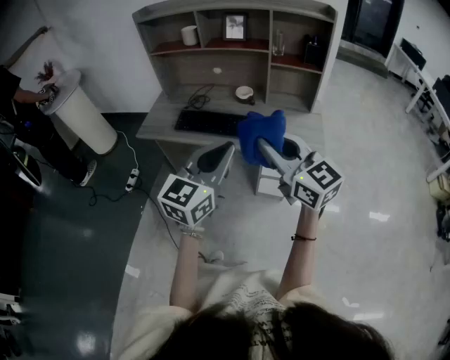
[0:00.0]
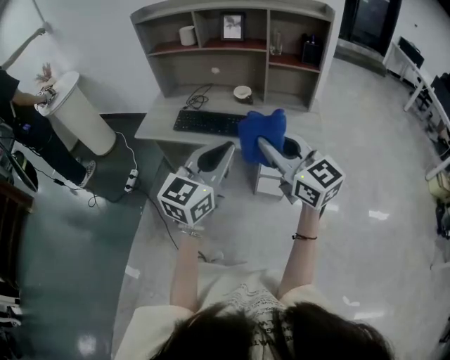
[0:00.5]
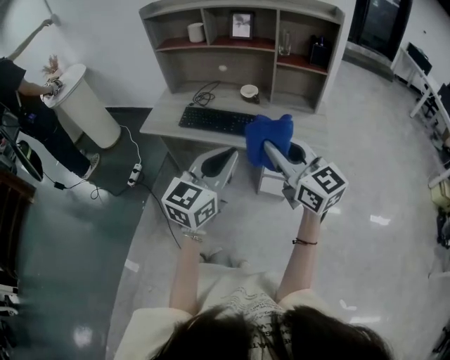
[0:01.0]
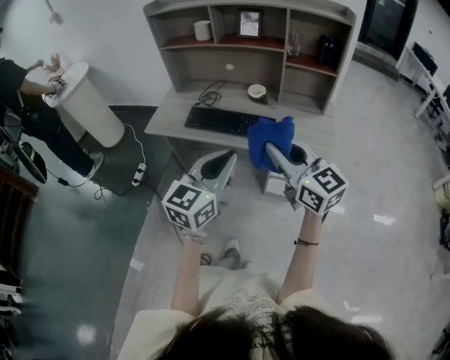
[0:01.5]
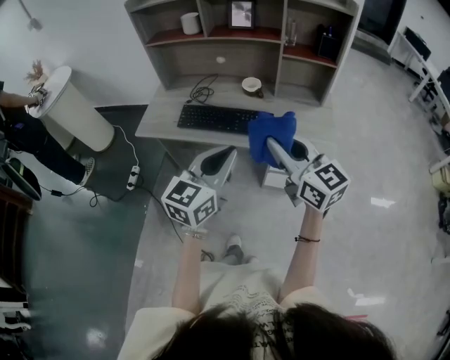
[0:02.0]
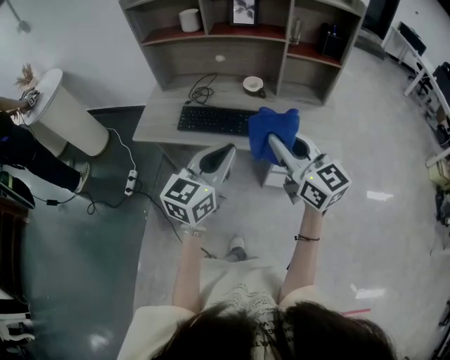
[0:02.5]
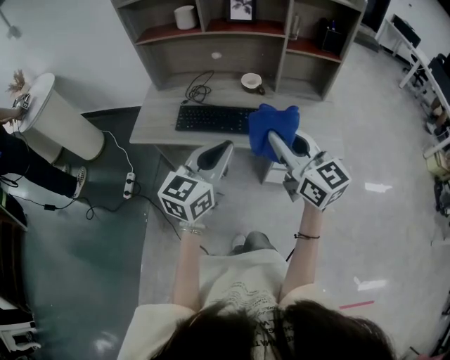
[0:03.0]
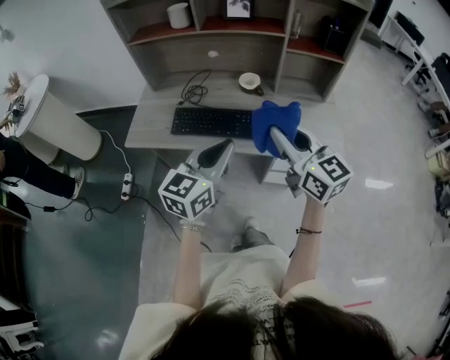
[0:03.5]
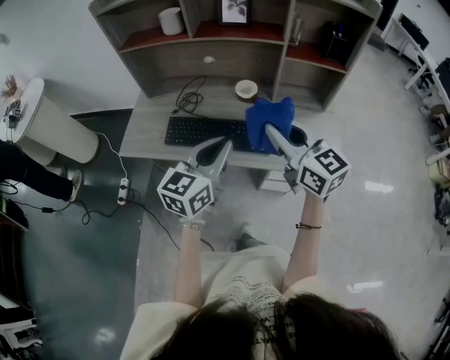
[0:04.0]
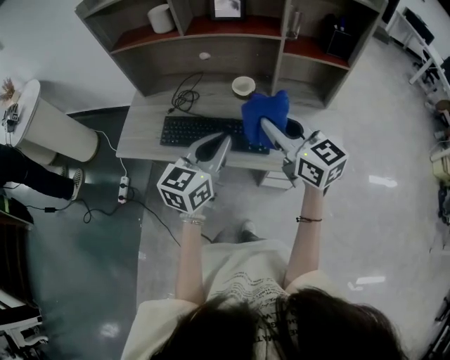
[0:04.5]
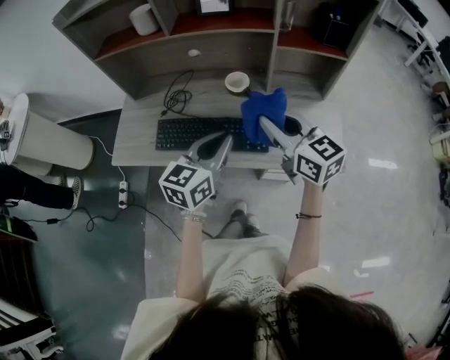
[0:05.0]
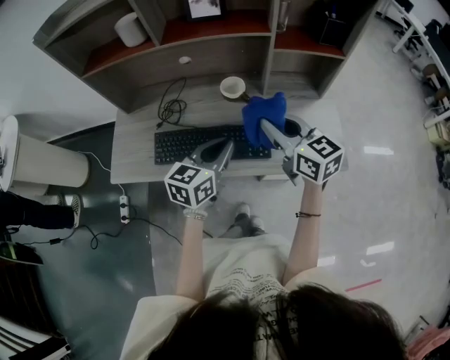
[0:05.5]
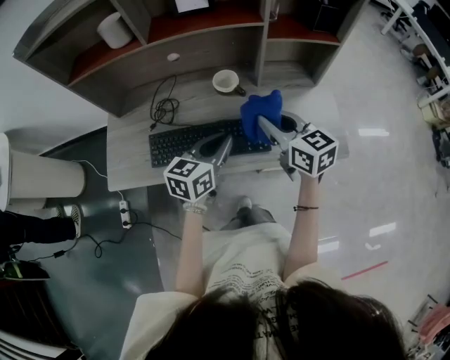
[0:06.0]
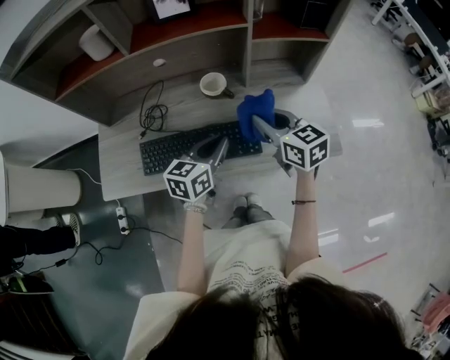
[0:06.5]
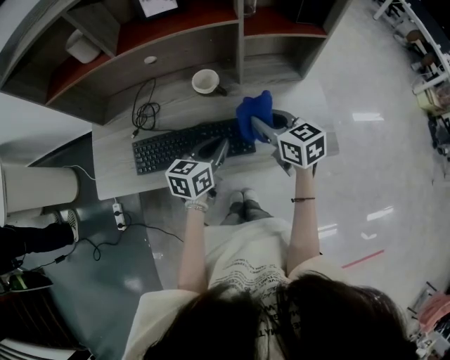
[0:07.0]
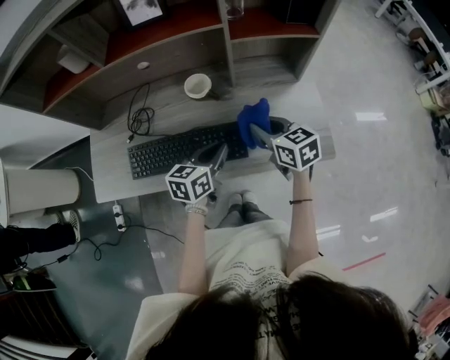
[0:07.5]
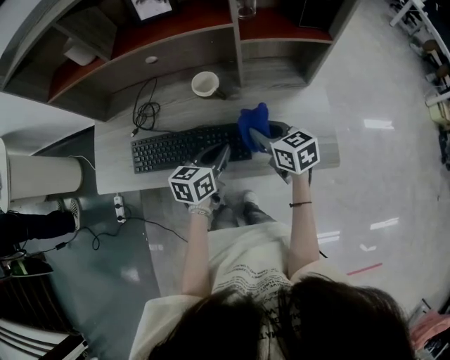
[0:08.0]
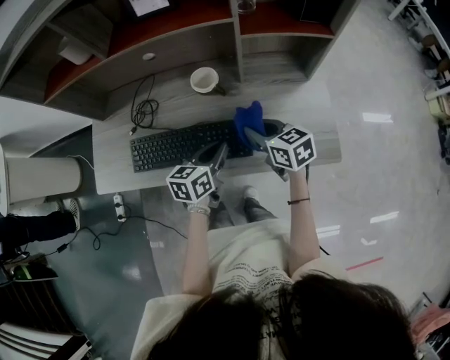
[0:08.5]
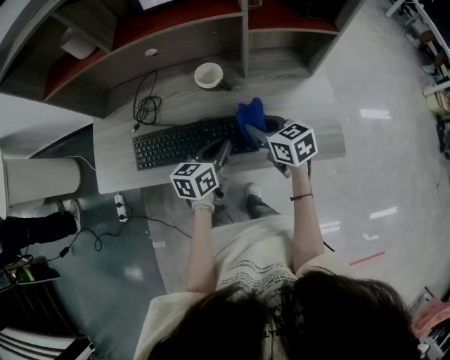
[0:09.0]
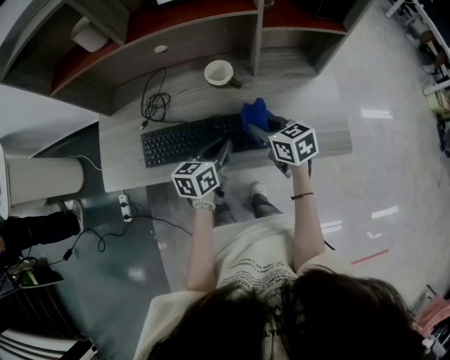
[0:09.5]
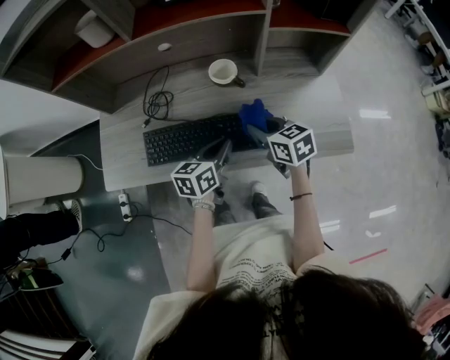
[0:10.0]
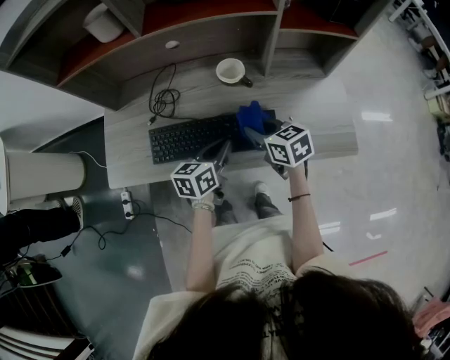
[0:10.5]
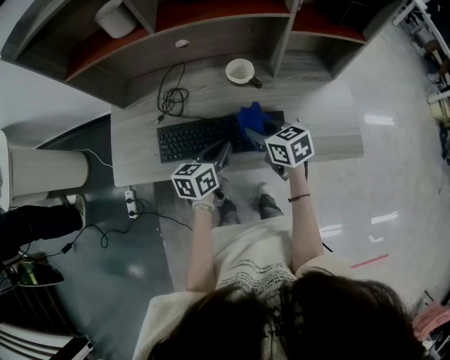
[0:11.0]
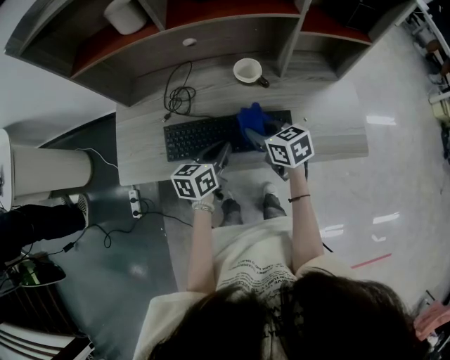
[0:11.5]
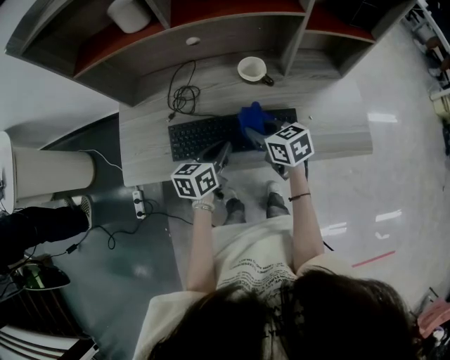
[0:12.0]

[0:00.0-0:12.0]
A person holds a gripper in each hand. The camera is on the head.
0:00.0 to 0:02.0: Both grippers travel together forward, some 5 cm.
0:02.0 to 0:04.0: Both grippers move forward, some 15 cm.
0:04.0 to 0:06.0: The two grippers go approximately 15 cm forward and downward. The left gripper rotates roughly 20 degrees.
0:06.0 to 0:08.0: Both grippers travel together downward and to the right, some 10 cm.
0:08.0 to 0:10.0: Both grippers move to the left, roughly 10 cm.
0:10.0 to 0:12.0: The grippers both shift to the left by some 10 cm.

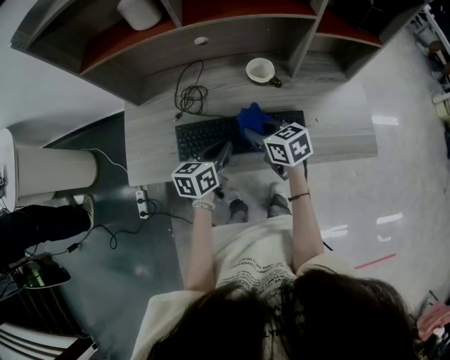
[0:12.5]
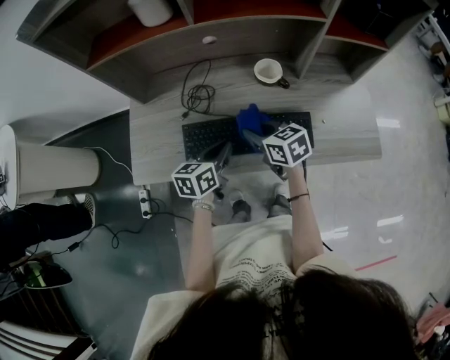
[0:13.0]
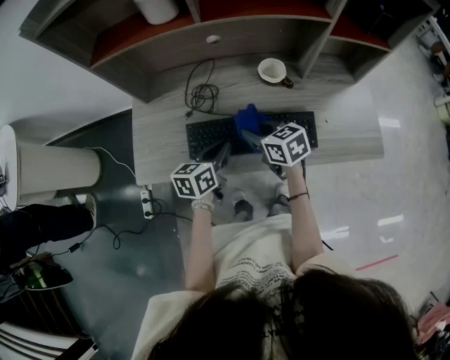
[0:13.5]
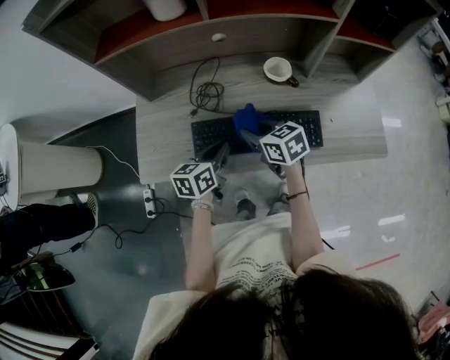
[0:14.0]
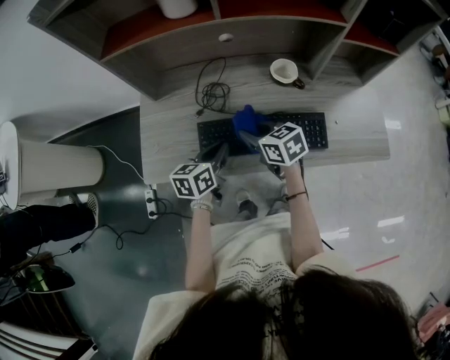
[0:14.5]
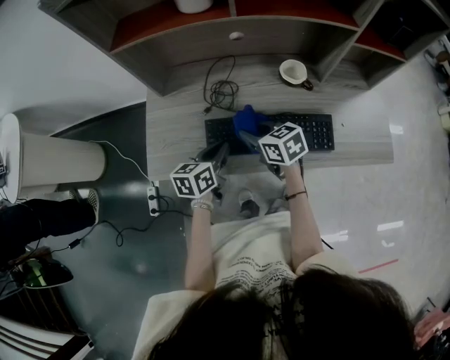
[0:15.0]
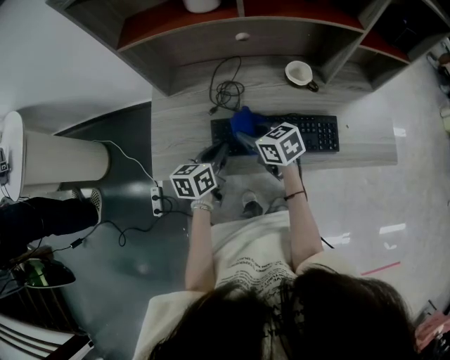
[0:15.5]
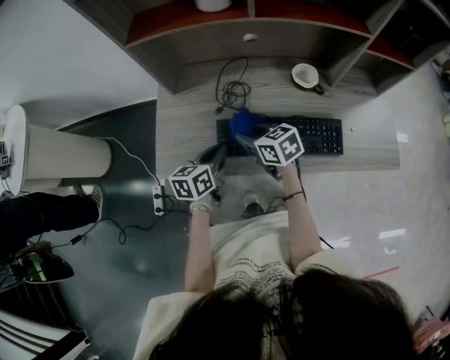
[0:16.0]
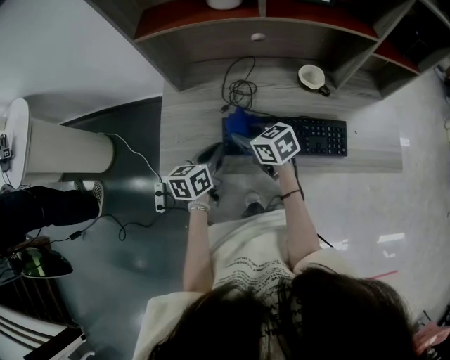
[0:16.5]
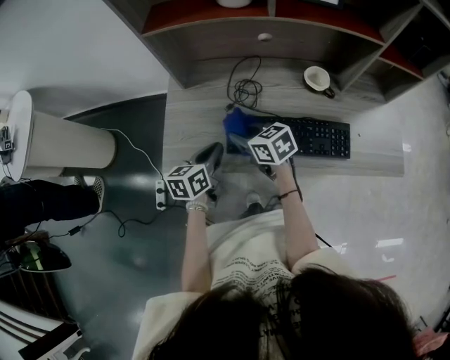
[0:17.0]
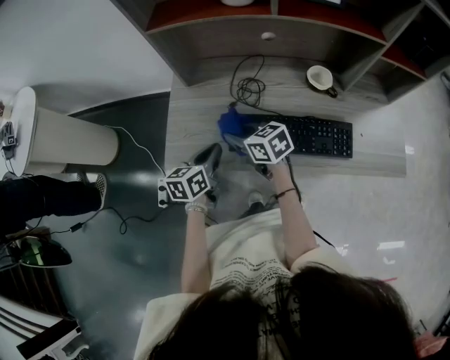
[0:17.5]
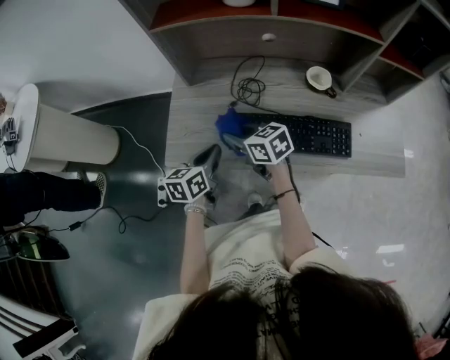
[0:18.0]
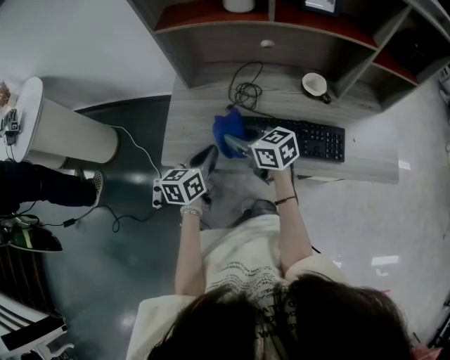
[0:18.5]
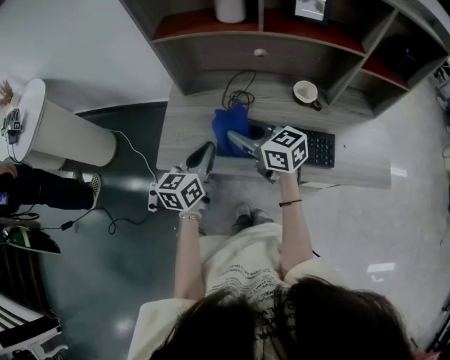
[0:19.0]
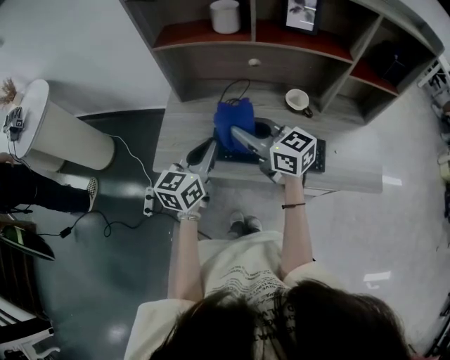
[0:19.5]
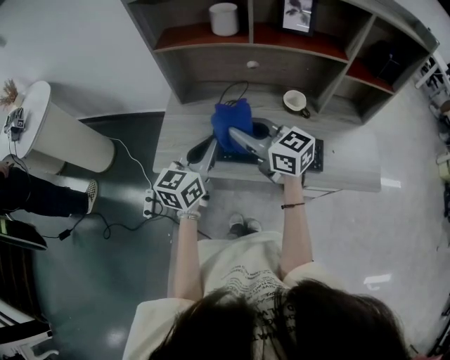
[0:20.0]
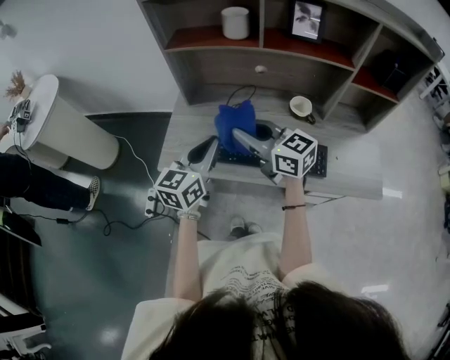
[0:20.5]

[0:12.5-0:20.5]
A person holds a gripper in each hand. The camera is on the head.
0:12.5 to 0:14.5: The grippers both shift to the left by about 10 cm.
0:14.5 to 0:16.5: The two grippers go about 10 cm to the left.
0:16.5 to 0:18.5: The right gripper goes roughly 5 cm upward; the left gripper shifts by approximately 5 cm.
0:18.5 to 0:20.5: The right gripper moves upward and to the right, about 15 cm, and swivels about 20 degrees, while the left gripper is displaced upward by approximately 15 cm, and turns by roughly 20 degrees.

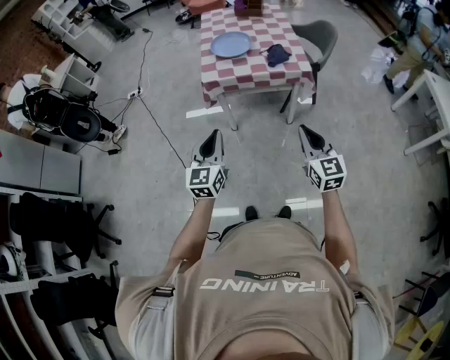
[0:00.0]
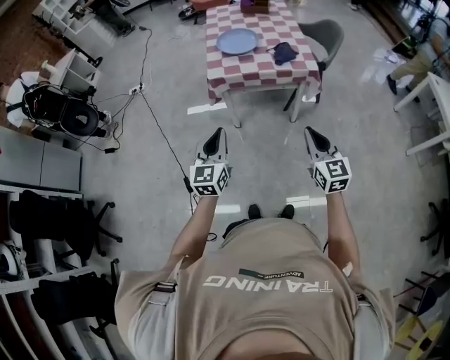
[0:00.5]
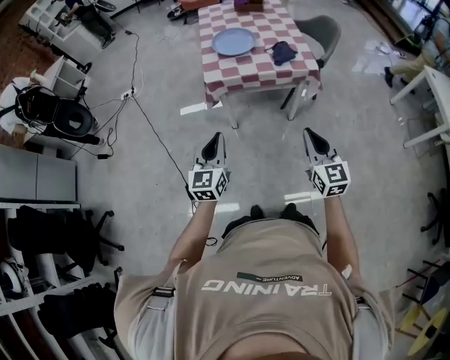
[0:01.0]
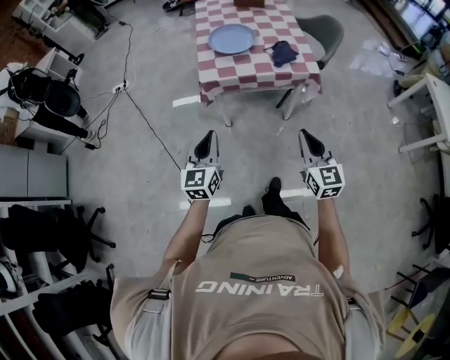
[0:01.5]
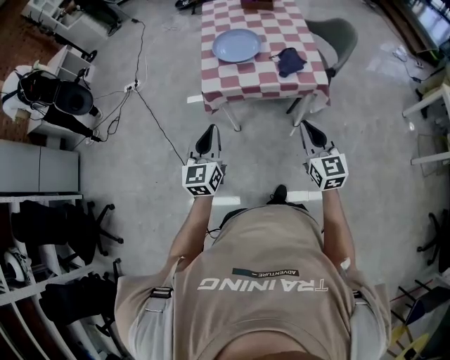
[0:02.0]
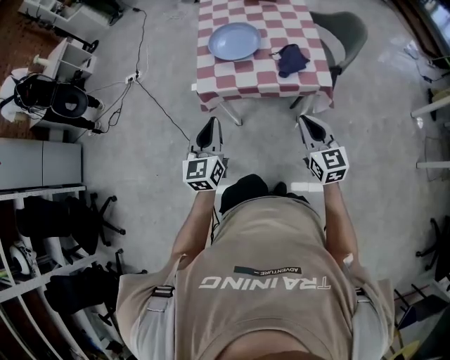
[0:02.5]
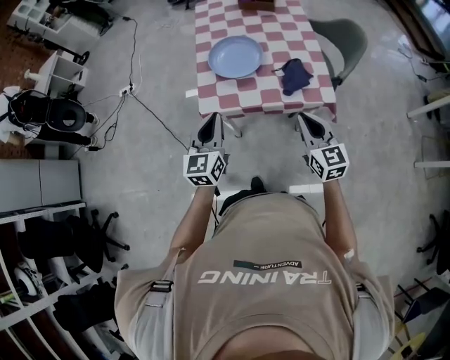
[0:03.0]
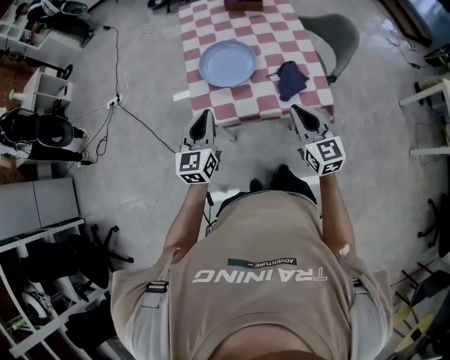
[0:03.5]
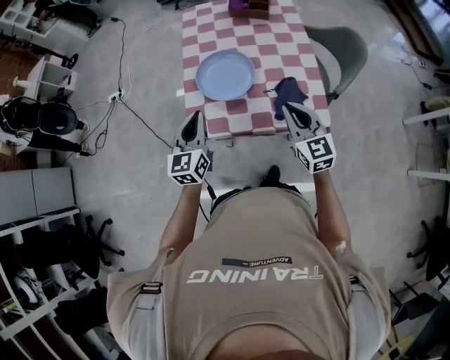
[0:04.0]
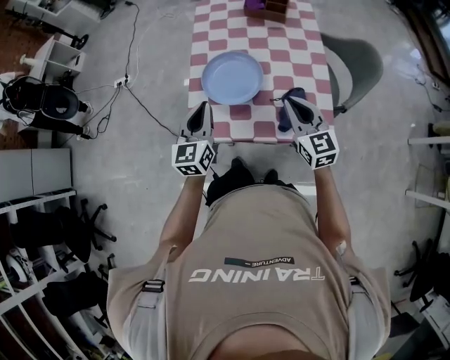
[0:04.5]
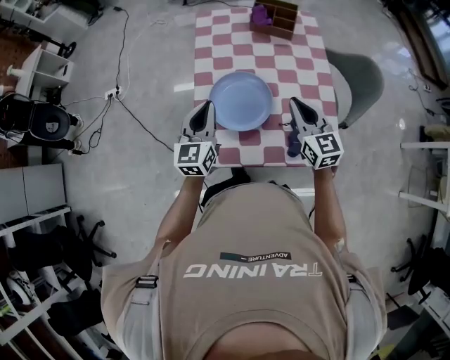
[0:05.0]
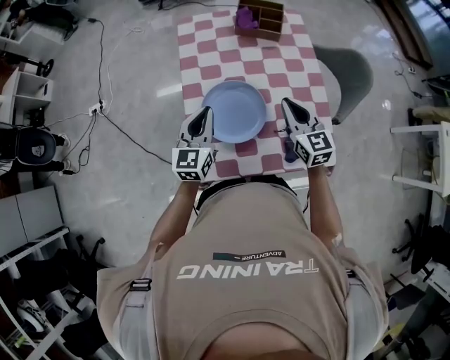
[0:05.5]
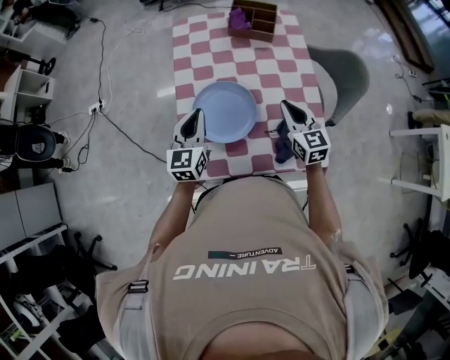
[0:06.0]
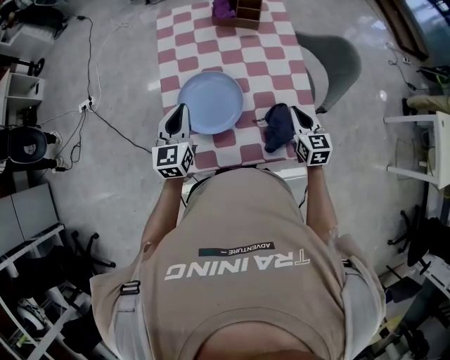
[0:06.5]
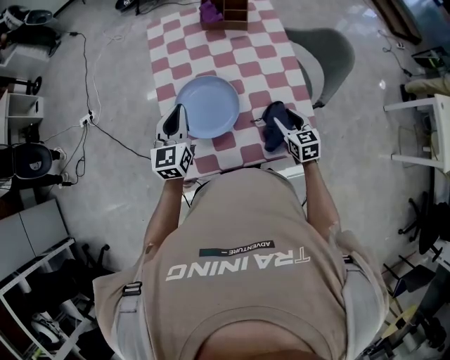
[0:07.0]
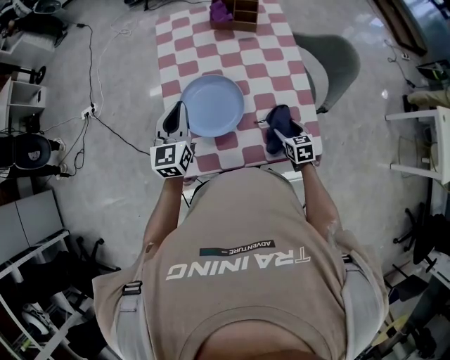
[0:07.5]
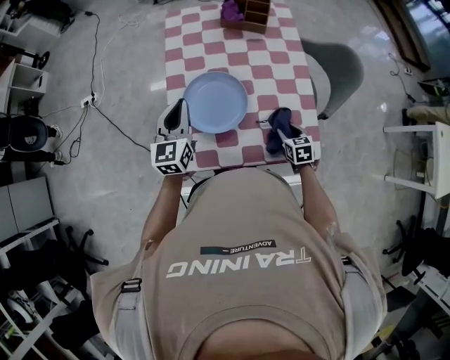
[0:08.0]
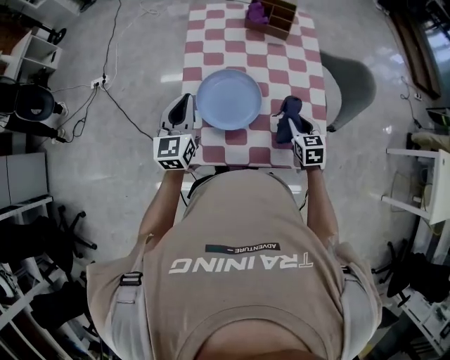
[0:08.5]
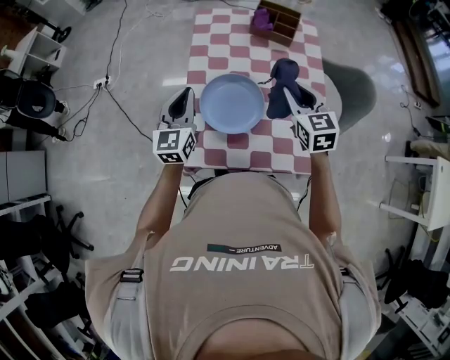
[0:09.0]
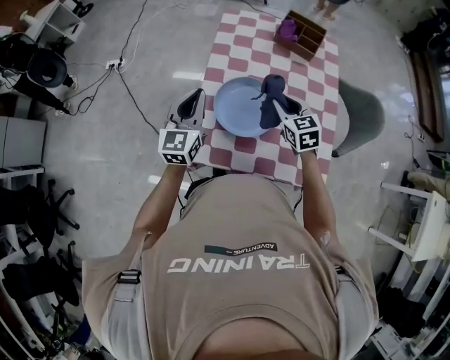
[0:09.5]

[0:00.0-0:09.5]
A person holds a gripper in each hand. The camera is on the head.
0:00.0 to 0:02.0: The grippers both shift forward by roughly 15 cm.
0:02.0 to 0:04.0: Both grippers travel together forward, approximately 30 cm.
0:04.0 to 0:05.5: The grippers both shift forward by some 20 cm.
0:05.5 to 0:07.5: The right gripper travels downward and to the right by some 25 cm, points its fingers approximately 30 degrees further downward, and opens its fingers.
0:07.5 to 0:09.5: The left gripper moves to the left, roughly 5 cm; the right gripper shifts some 25 cm upward, to the left and forward, changes its angle by roughly 30 degrees, and closes up.
